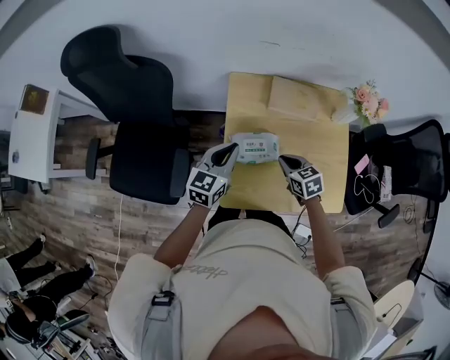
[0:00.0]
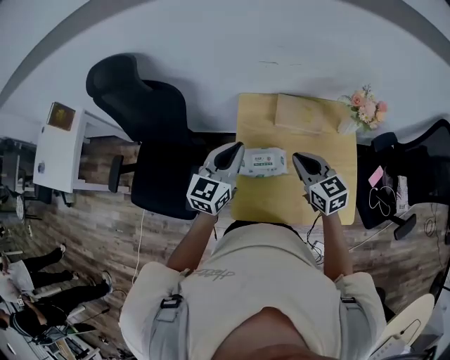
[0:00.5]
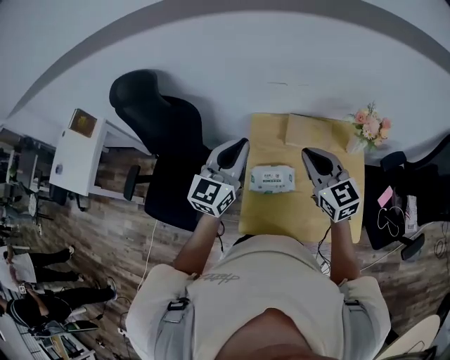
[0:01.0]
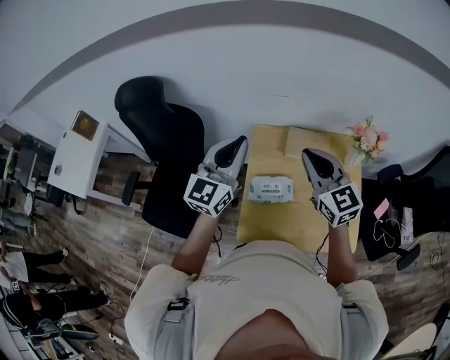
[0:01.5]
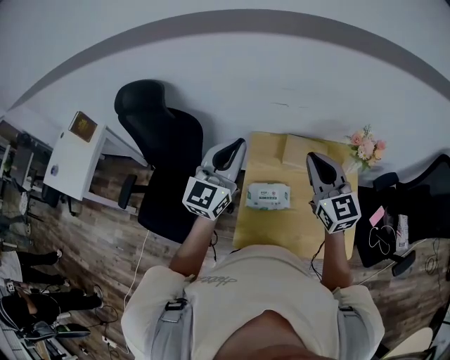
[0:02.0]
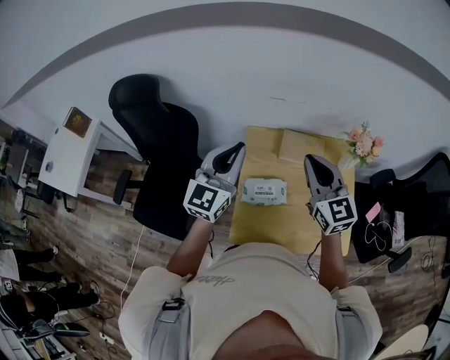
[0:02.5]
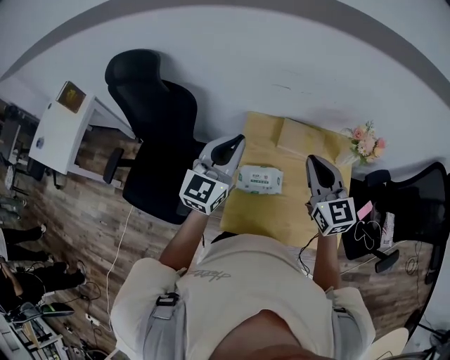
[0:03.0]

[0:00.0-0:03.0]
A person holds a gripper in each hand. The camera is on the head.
0:00.0 to 0:01.5: Both grippers move upward, some 30 cm. The left gripper turns by some 30 degrees, while the right gripper tips its fingers upward by approximately 40 degrees.
0:01.5 to 0:03.0: There are only small adjustments of the grippers.

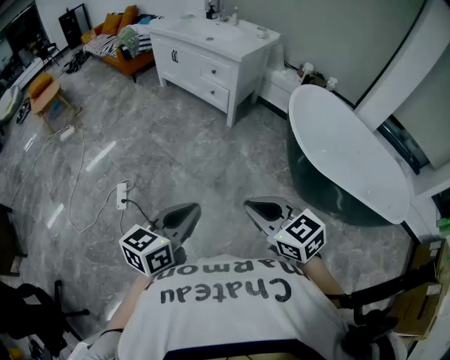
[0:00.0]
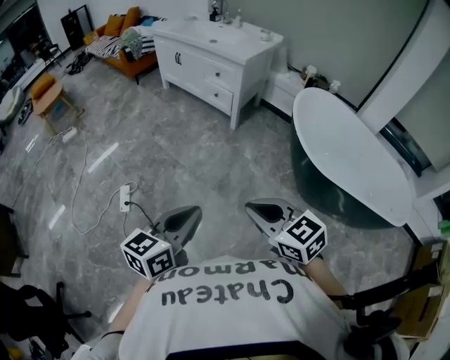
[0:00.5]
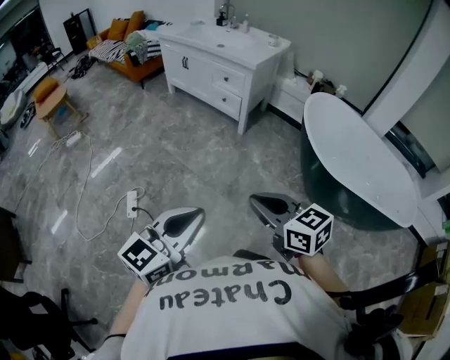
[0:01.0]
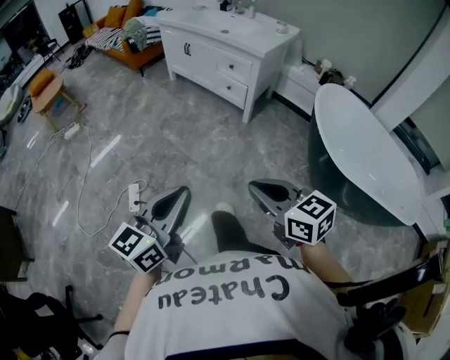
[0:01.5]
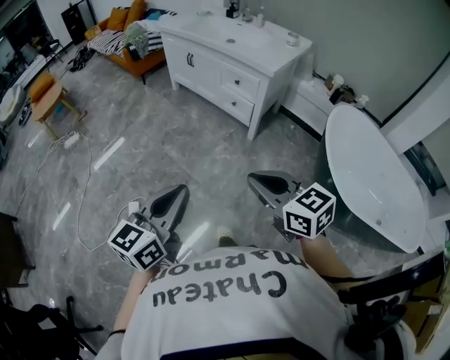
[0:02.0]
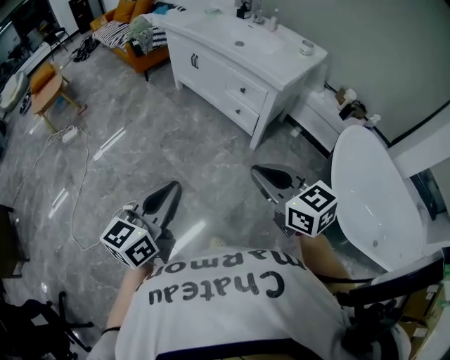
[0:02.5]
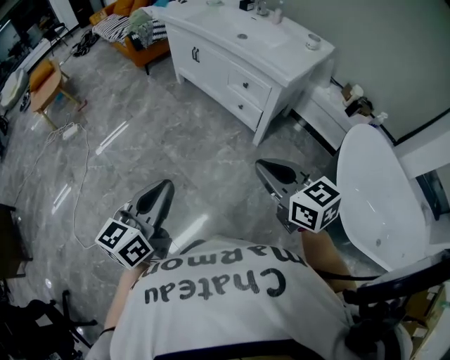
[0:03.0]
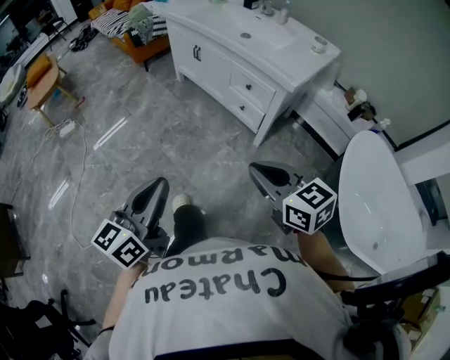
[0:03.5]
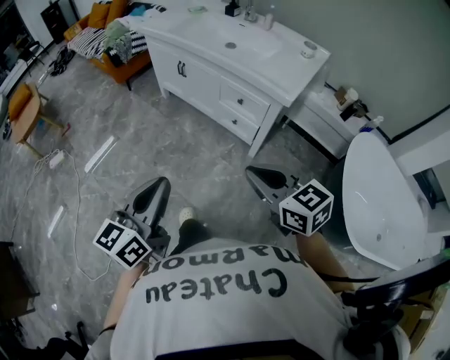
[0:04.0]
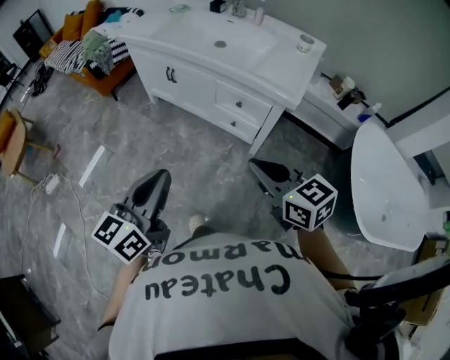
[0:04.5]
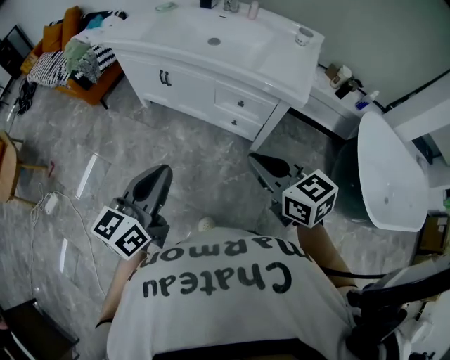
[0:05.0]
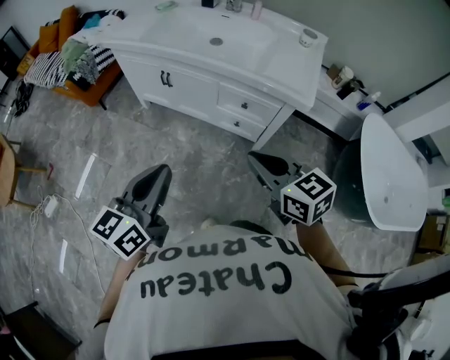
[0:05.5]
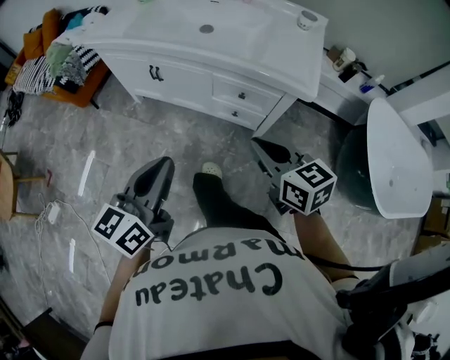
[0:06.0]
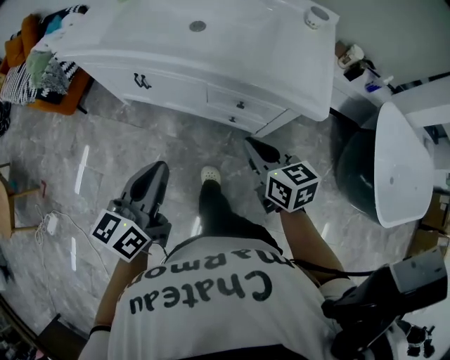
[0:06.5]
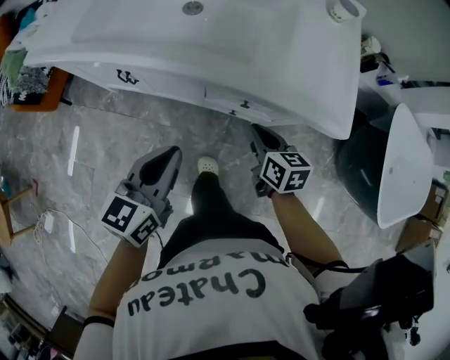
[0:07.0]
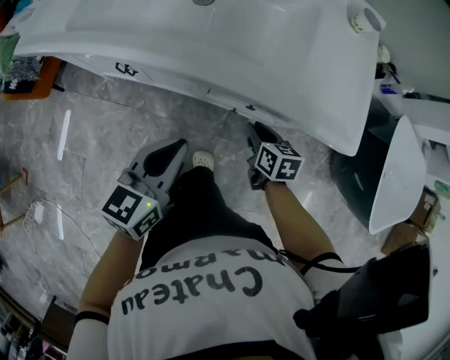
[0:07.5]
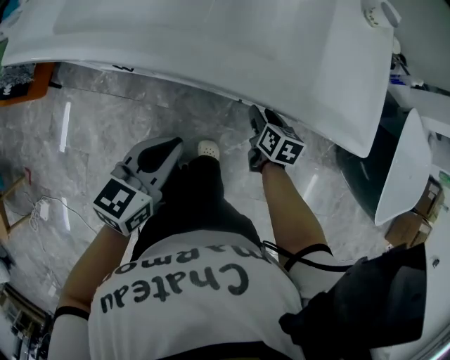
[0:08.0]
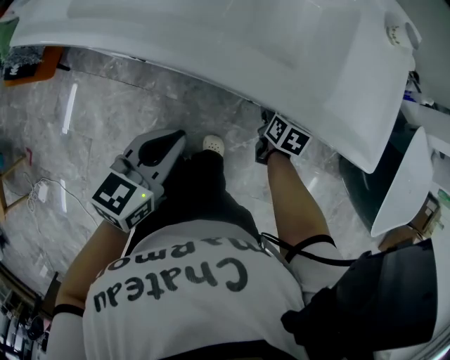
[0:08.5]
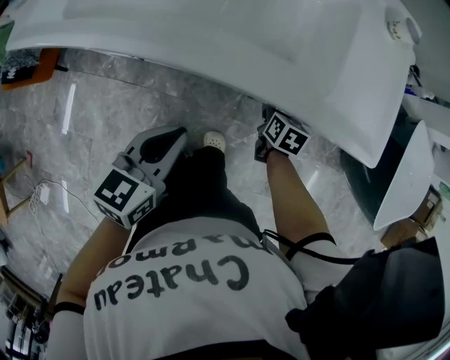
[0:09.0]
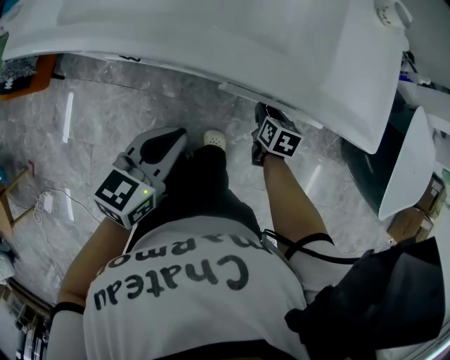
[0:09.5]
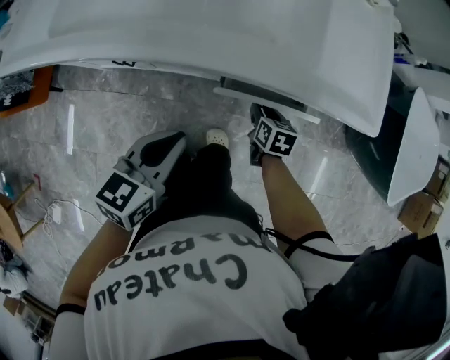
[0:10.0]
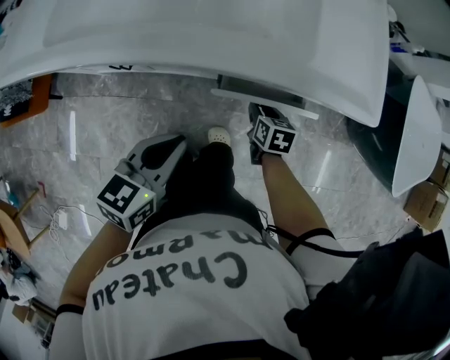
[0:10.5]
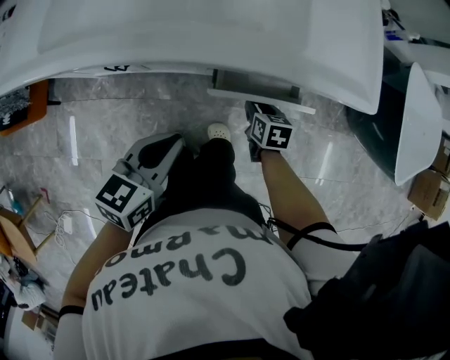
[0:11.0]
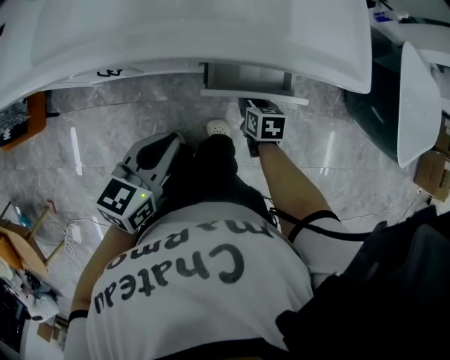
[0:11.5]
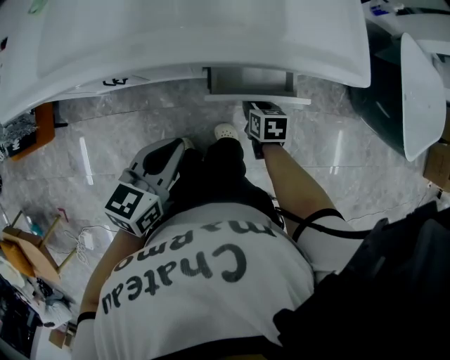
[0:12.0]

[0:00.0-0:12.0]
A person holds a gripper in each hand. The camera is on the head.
0:00.0 to 0:02.0: The right gripper moves forward, some 30 cm, while the left gripper moves forward and to the left, approximately 30 cm.
0:02.0 to 0:04.0: Both grippers travel together forward, roughly 30 cm.
0:04.0 to 0:06.0: The two grippers go some 25 cm forward. The right gripper rotates approximately 30 degrees, while the left gripper changes its angle by some 20 degrees.
0:06.0 to 0:08.0: The left gripper shifts by roughly 30 cm, and rotates about 30 degrees. The right gripper heads downward, covering some 30 cm, changes its angle by about 50 degrees, and opens its fingers.
0:08.0 to 0:10.0: The grippers stay close to where they were, moving slightly.
0:10.0 to 0:12.0: The grippers move only a little.

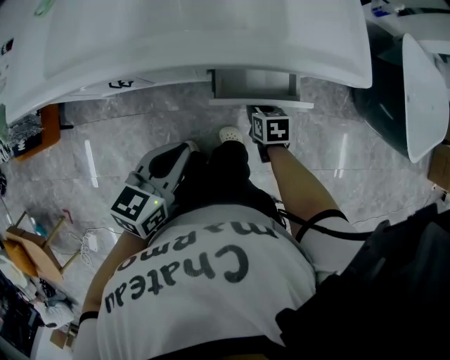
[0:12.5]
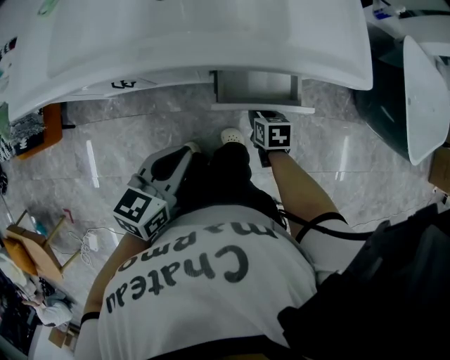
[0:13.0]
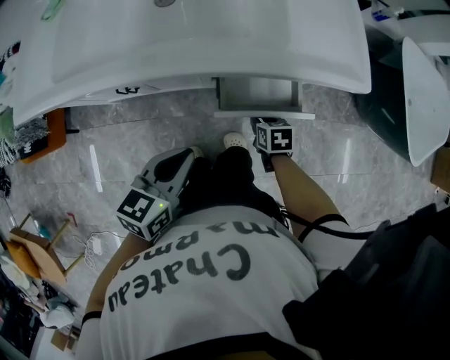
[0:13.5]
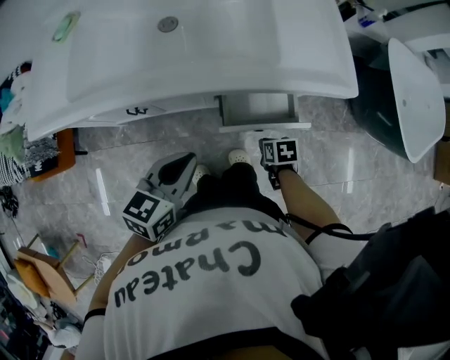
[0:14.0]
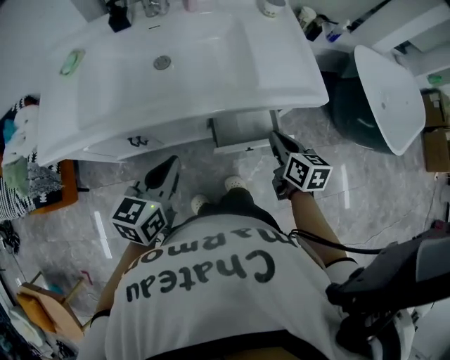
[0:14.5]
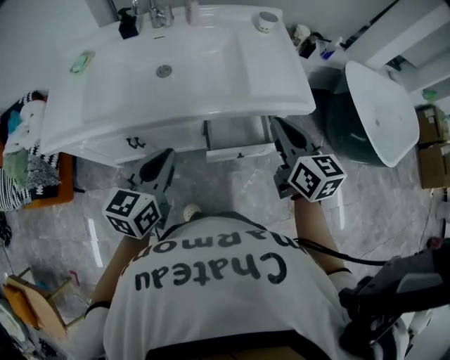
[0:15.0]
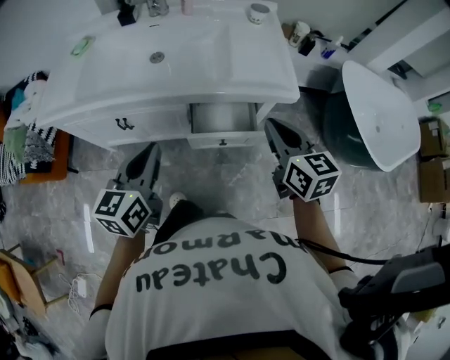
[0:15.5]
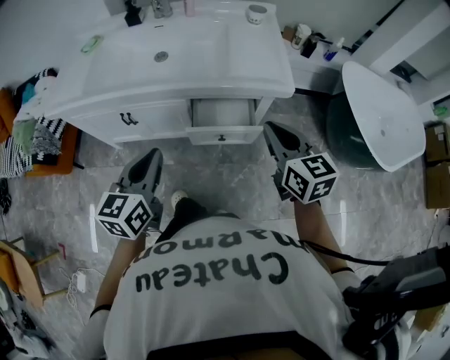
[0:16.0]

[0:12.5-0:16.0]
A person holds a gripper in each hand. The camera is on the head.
0:12.5 to 0:14.5: The right gripper moves upward, about 25 cm, turns by about 30 degrees, and closes up; the left gripper moves upward and to the left, some 10 cm.
0:14.5 to 0:16.0: The left gripper heads backward and to the right, covering some 15 cm, while the right gripper moves upward, backward and to the right, roughly 15 cm, and changes its angle by about 30 degrees.

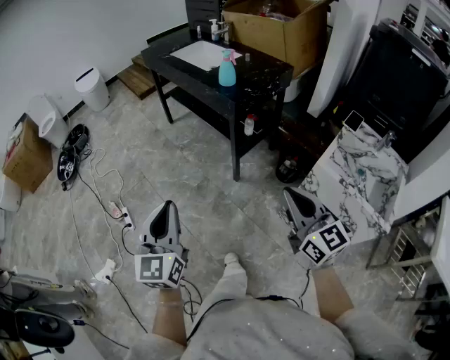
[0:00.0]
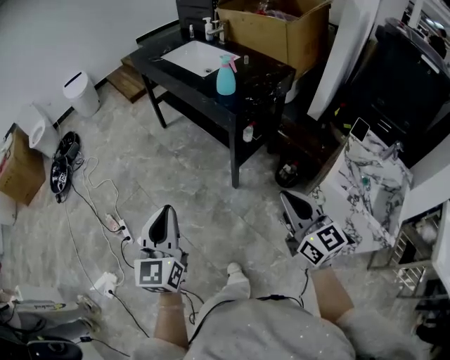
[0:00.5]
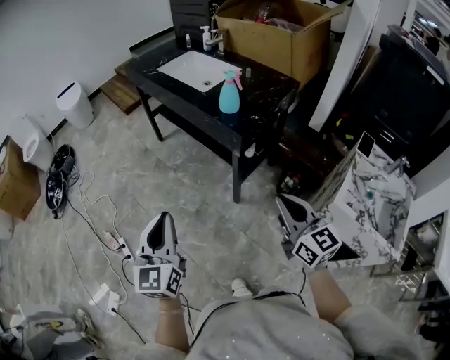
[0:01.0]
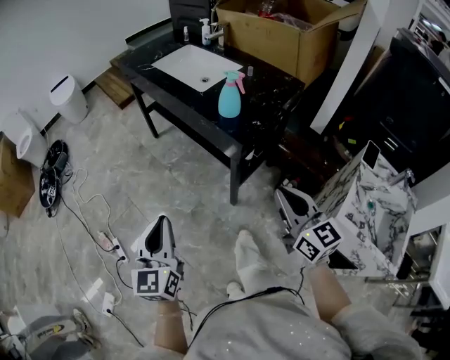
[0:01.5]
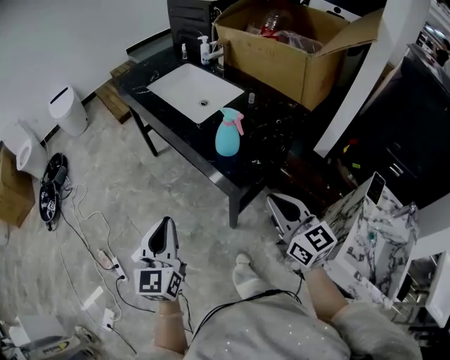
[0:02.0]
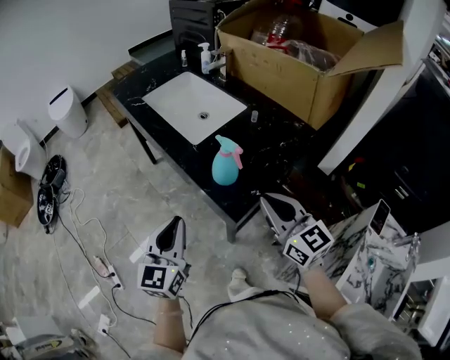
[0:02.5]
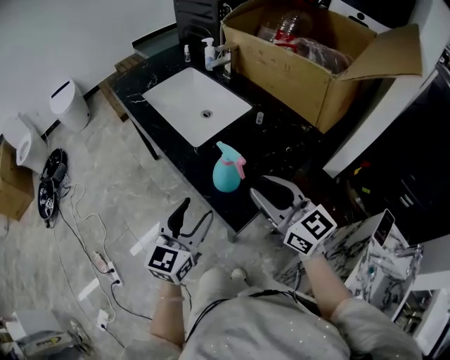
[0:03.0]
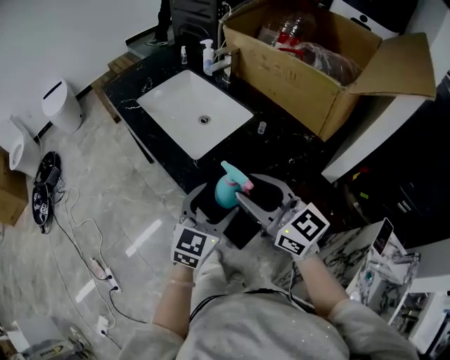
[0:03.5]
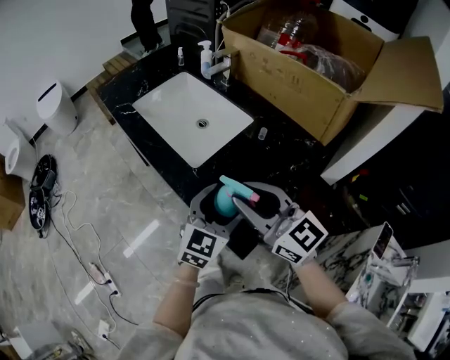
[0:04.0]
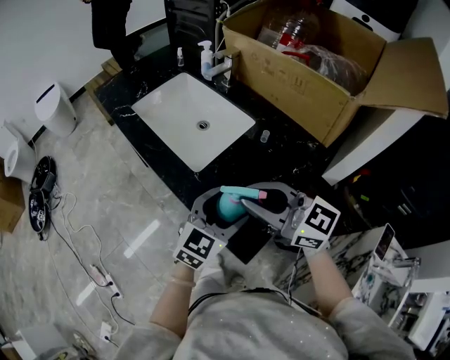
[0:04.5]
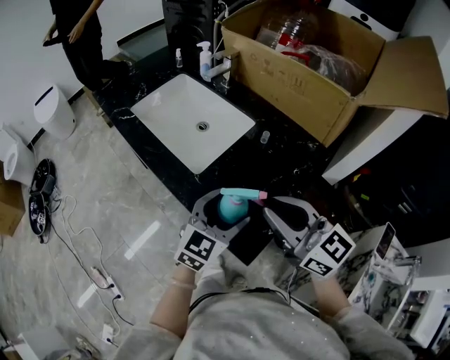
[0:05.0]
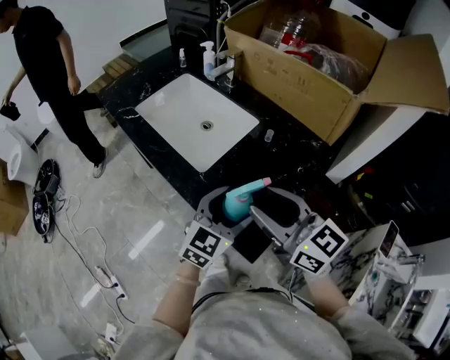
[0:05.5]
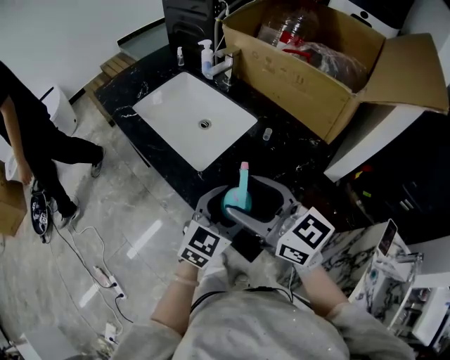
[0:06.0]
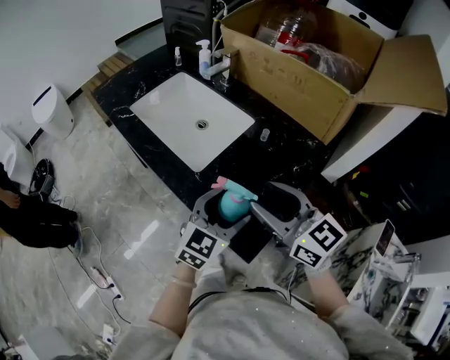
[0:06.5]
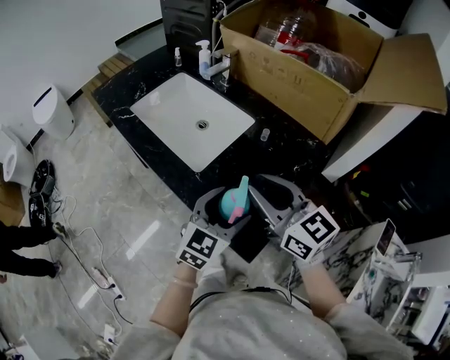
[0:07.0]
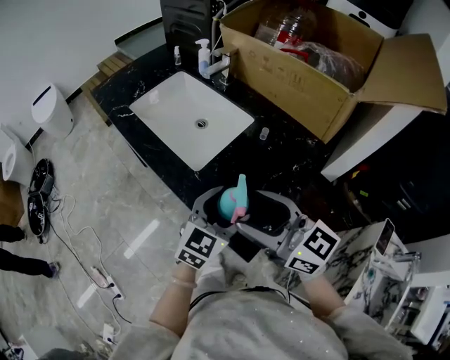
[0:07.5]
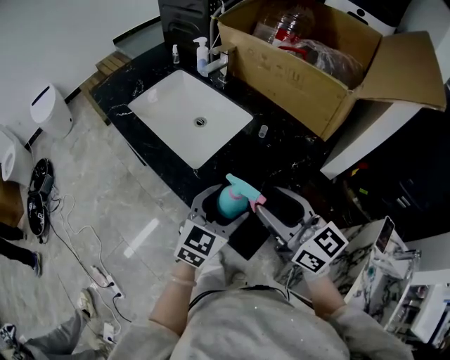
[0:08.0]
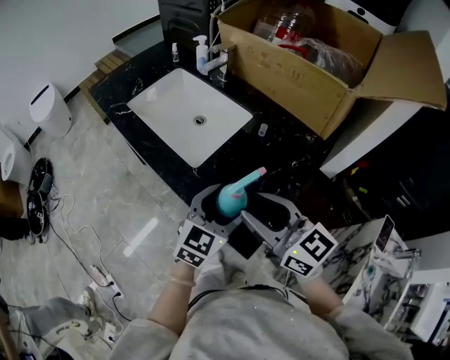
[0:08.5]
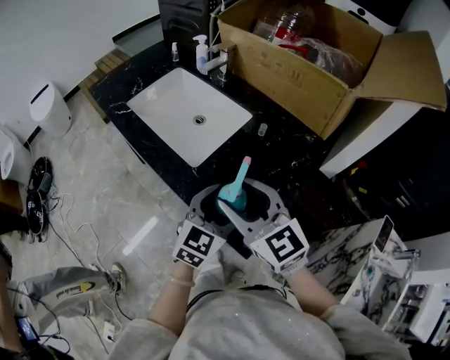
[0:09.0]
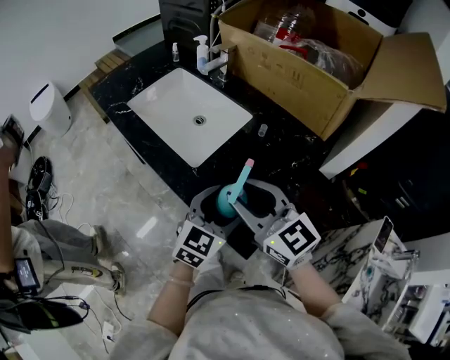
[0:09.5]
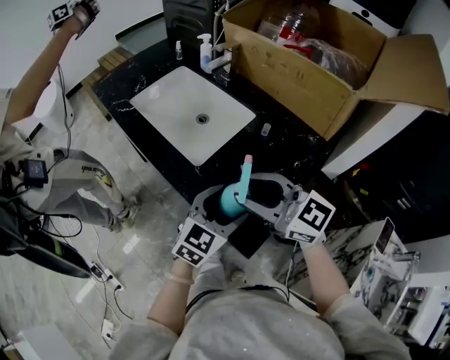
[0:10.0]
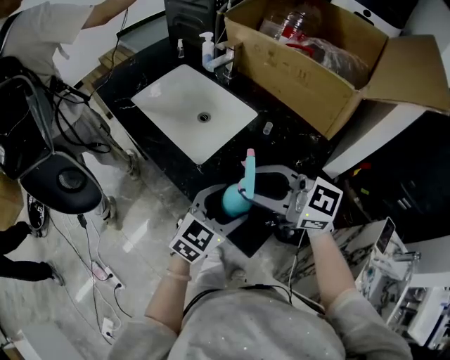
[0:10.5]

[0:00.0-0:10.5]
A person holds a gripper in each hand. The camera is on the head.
0:00.0 to 0:02.0: The two grippers go about 40 cm forward.
0:02.0 to 0:04.0: The right gripper moves forward, approximately 25 cm, and opens its fingers, while the left gripper goes approximately 35 cm forward and to the right, swivels approximately 30 degrees, and opens its fingers.
0:04.0 to 0:06.5: The right gripper swings left and right, some 5 cm each way, with 2 reversals.
0:06.5 to 0:08.5: The grippers move only a little.
0:08.5 to 0:10.5: The right gripper swivels some 30 degrees.
